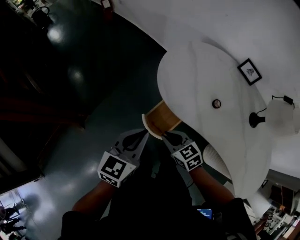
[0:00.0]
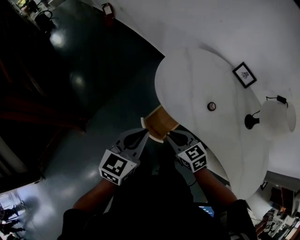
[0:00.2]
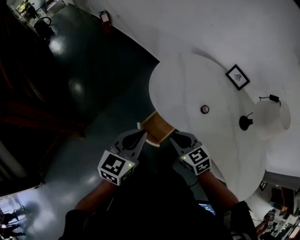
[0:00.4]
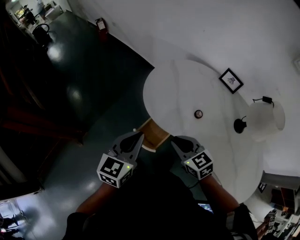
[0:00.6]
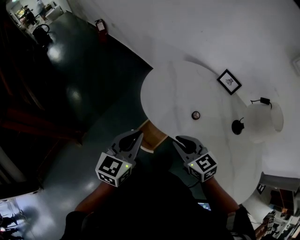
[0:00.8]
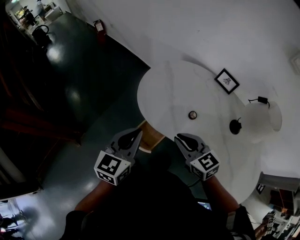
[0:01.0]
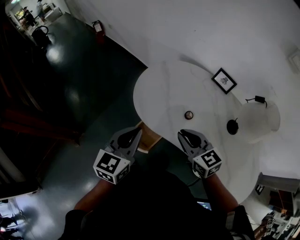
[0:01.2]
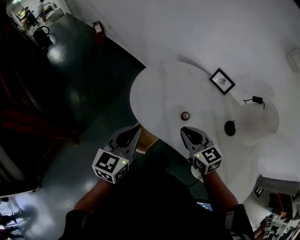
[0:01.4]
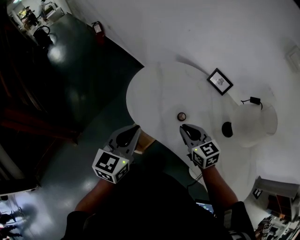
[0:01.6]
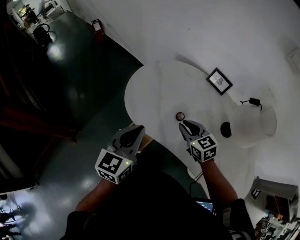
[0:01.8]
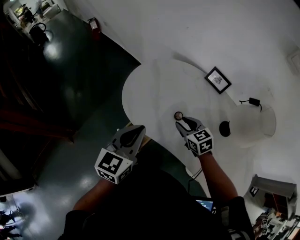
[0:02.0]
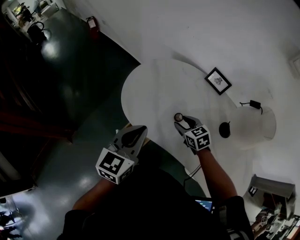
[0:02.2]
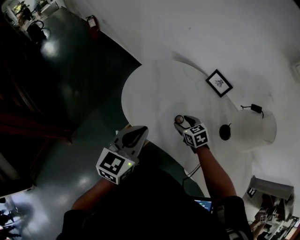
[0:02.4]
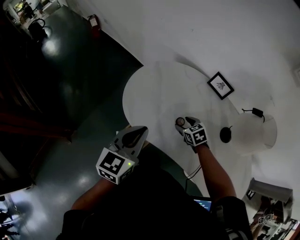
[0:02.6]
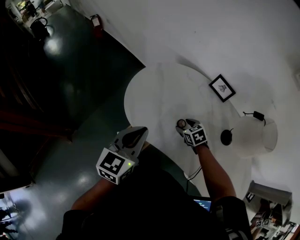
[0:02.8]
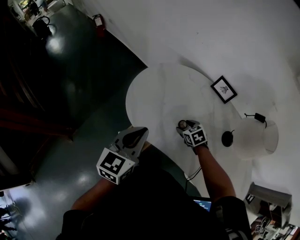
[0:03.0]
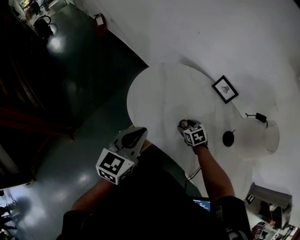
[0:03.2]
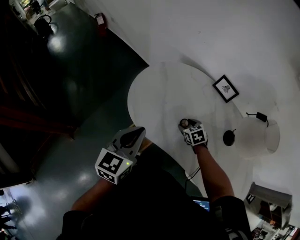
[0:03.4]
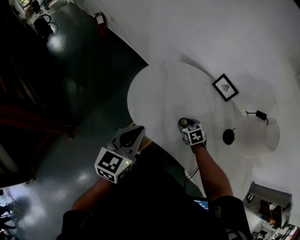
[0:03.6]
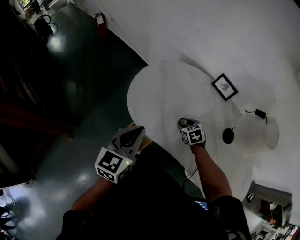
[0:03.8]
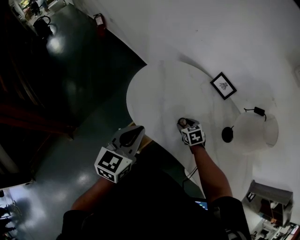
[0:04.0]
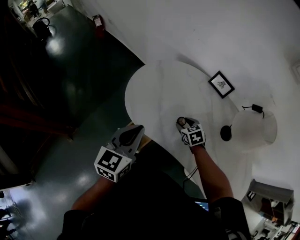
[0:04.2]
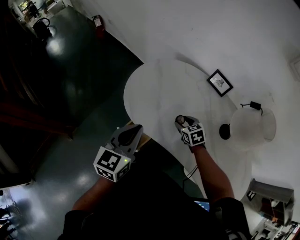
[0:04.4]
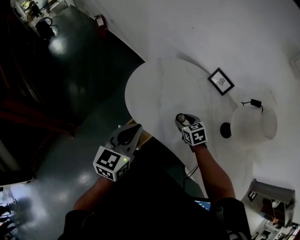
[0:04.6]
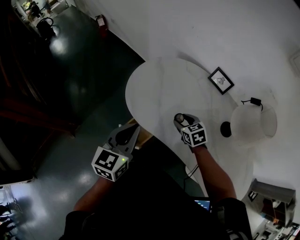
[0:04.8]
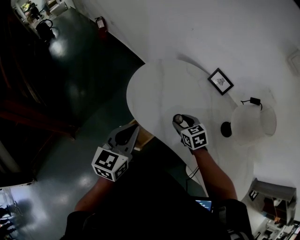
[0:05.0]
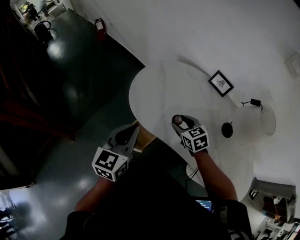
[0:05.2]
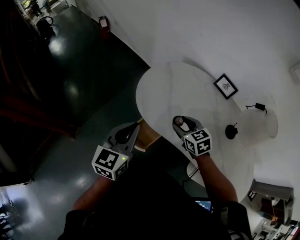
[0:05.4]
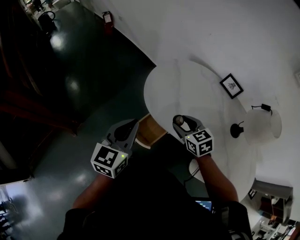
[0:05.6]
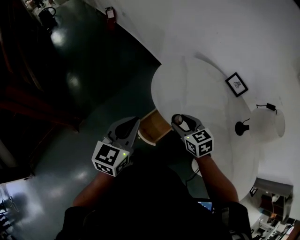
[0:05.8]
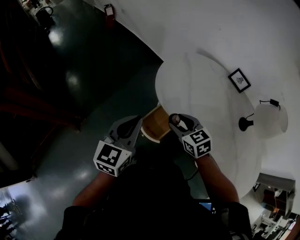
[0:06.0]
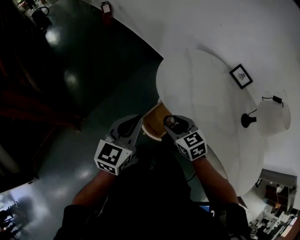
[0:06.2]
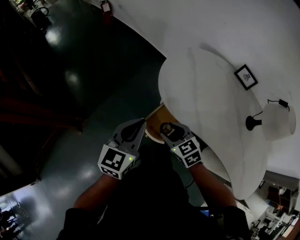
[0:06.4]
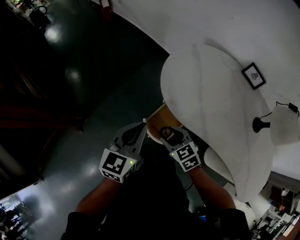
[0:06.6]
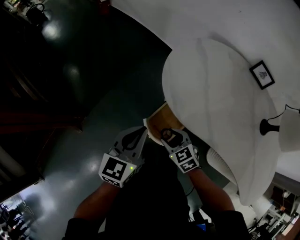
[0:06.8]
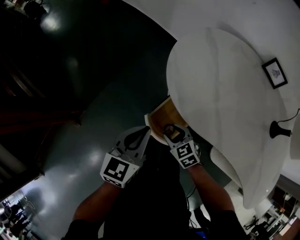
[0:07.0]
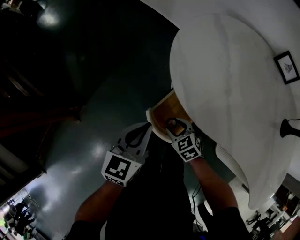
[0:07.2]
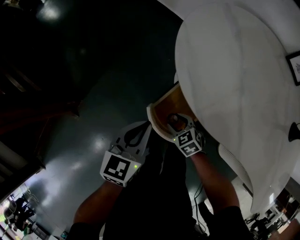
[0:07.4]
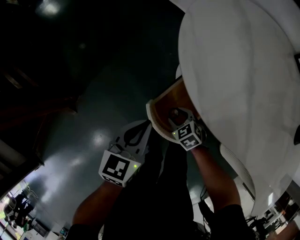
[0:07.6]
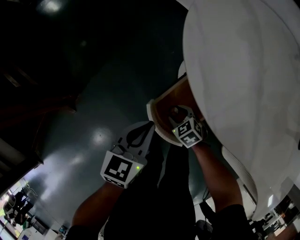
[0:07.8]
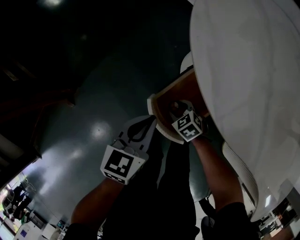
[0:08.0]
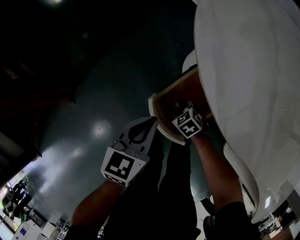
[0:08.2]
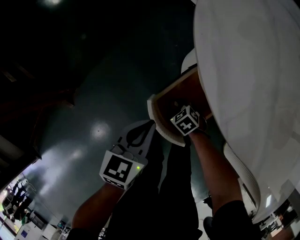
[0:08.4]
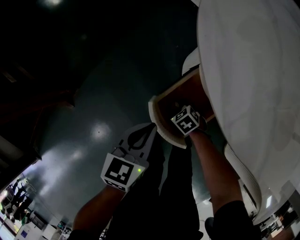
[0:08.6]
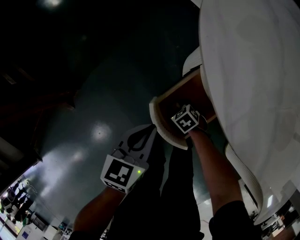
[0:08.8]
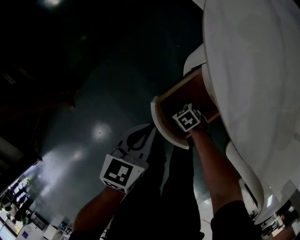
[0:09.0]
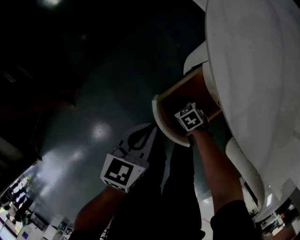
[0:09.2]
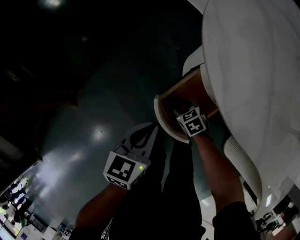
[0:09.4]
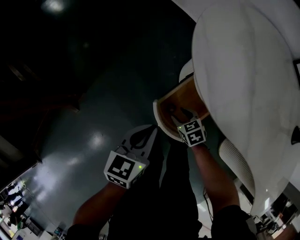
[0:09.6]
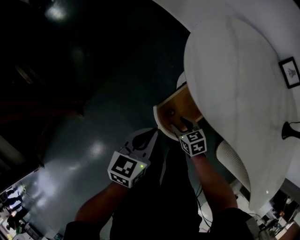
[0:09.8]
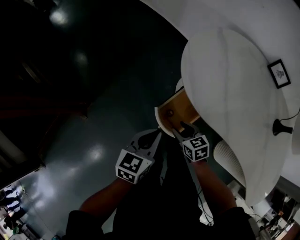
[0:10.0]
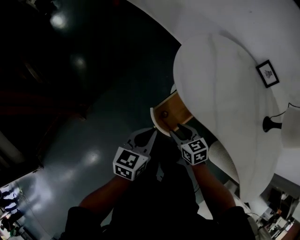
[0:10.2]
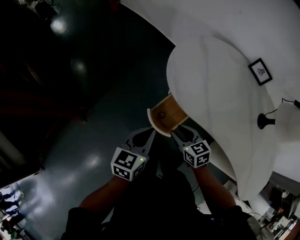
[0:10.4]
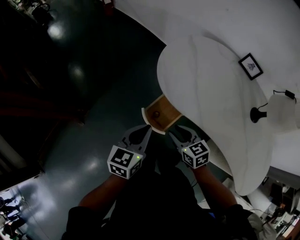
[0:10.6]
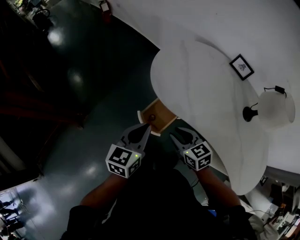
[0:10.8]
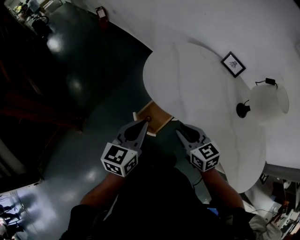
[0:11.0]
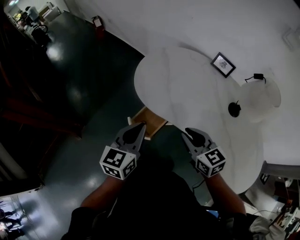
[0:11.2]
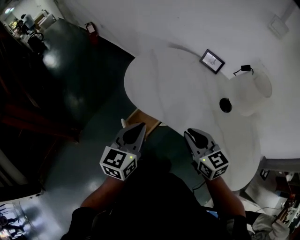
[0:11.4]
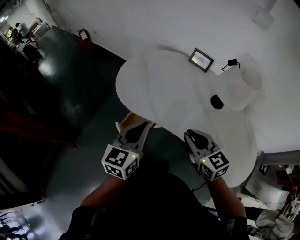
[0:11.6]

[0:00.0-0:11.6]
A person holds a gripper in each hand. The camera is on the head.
0:00.0 to 0:01.4: The right gripper goes some 25 cm to the right and upward, and swivels approximately 20 degrees, while the left gripper heads to the right and upward, covering roughly 15 cm.
0:01.4 to 0:02.8: The right gripper travels downward and forward by roughly 20 cm, points its fingers approximately 30 degrees further downward, and opens its fingers. The left gripper changes place by roughly 5 cm.
0:02.8 to 0:04.4: There are only small adjustments of the grippers.
0:04.4 to 0:05.8: The left gripper travels to the left by roughly 15 cm, while the right gripper goes about 25 cm to the left and upward.
0:05.8 to 0:07.2: The grippers both shift downward by about 30 cm.
0:07.2 to 0:08.8: The left gripper heads downward, covering some 15 cm, while the right gripper travels downward by approximately 25 cm, and rotates about 20 degrees.
0:08.8 to 0:10.2: The right gripper heads upward, covering some 35 cm, and rotates some 40 degrees; the left gripper travels upward by some 15 cm.
0:10.2 to 0:11.6: The right gripper is displaced to the right, upward and backward by roughly 40 cm, changes its angle by roughly 30 degrees, and closes. Meanwhile the left gripper goes some 30 cm to the right and upward, and changes its angle by roughly 20 degrees.

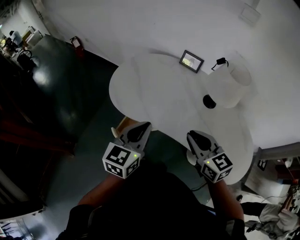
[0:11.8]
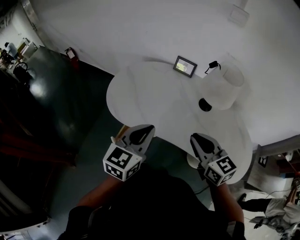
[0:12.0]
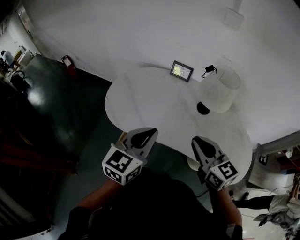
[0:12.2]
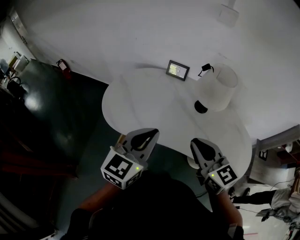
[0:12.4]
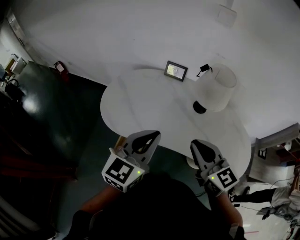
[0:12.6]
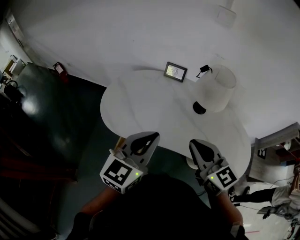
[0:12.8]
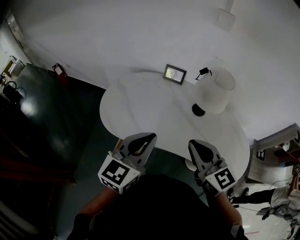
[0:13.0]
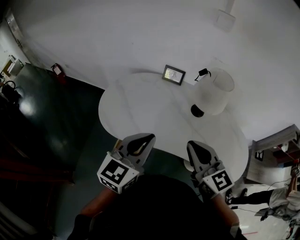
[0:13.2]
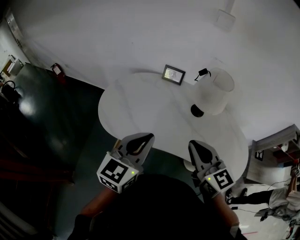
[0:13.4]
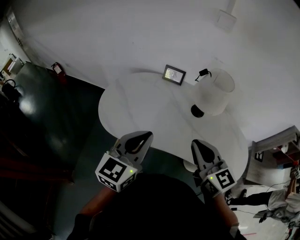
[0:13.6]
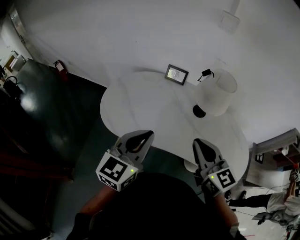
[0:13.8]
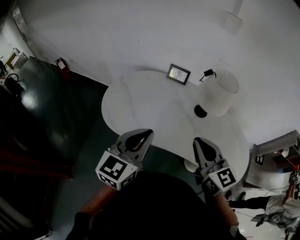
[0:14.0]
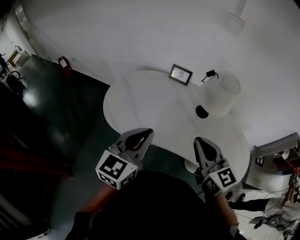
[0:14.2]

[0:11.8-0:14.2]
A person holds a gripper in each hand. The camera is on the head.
0:11.8 to 0:13.0: Both grippers travel together upward, approximately 10 cm.
0:13.0 to 0:14.2: There are only small adjustments of the grippers.

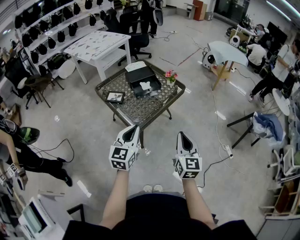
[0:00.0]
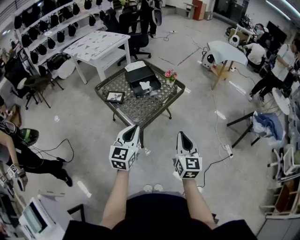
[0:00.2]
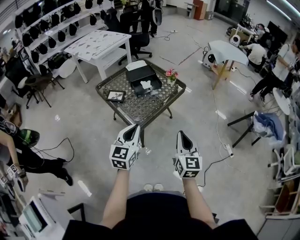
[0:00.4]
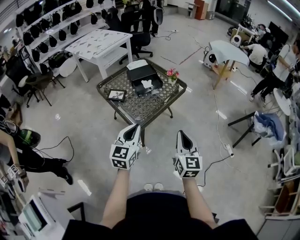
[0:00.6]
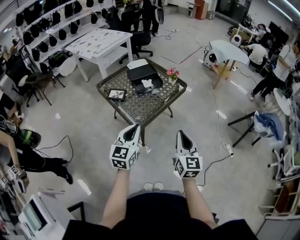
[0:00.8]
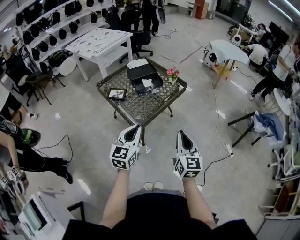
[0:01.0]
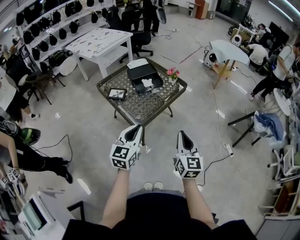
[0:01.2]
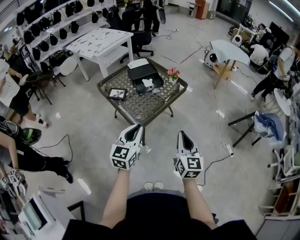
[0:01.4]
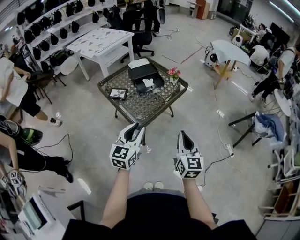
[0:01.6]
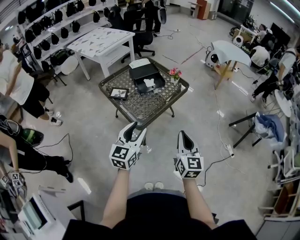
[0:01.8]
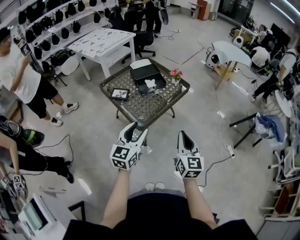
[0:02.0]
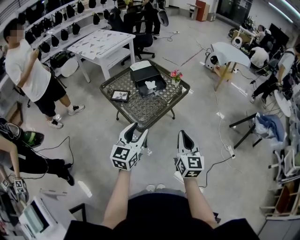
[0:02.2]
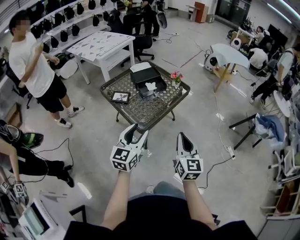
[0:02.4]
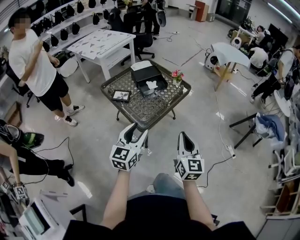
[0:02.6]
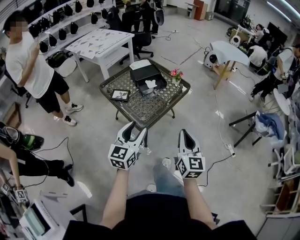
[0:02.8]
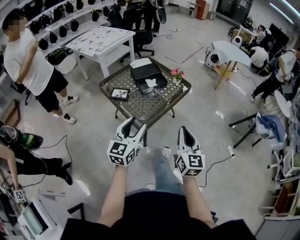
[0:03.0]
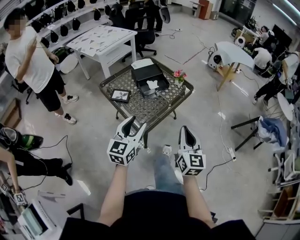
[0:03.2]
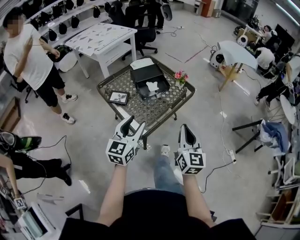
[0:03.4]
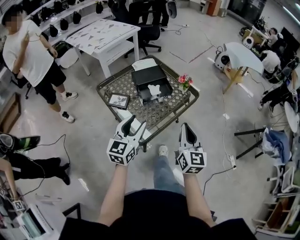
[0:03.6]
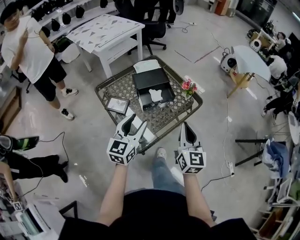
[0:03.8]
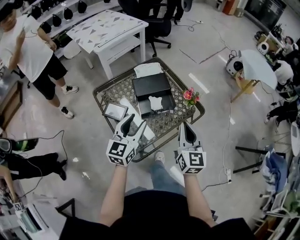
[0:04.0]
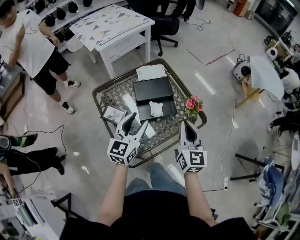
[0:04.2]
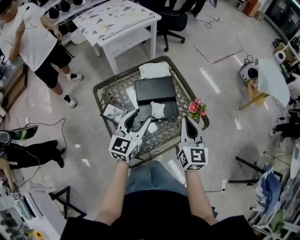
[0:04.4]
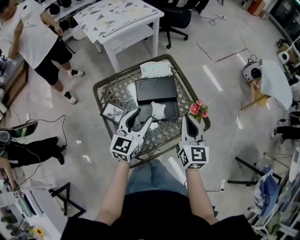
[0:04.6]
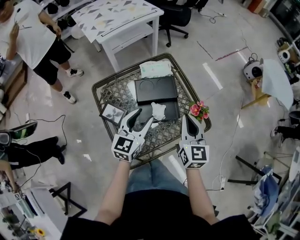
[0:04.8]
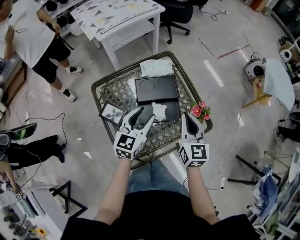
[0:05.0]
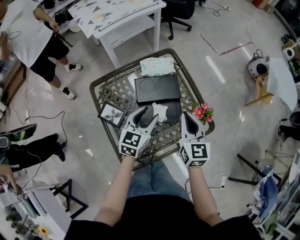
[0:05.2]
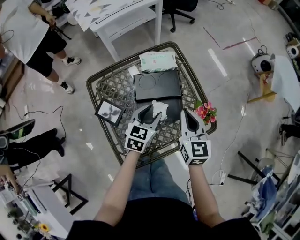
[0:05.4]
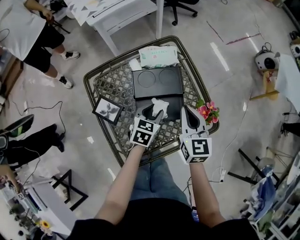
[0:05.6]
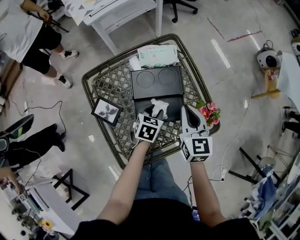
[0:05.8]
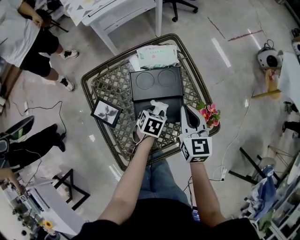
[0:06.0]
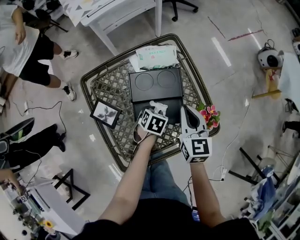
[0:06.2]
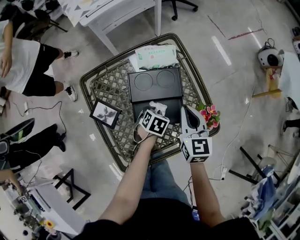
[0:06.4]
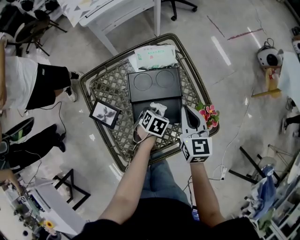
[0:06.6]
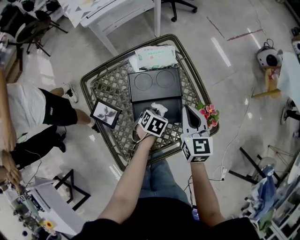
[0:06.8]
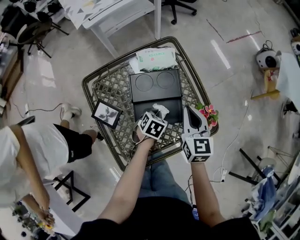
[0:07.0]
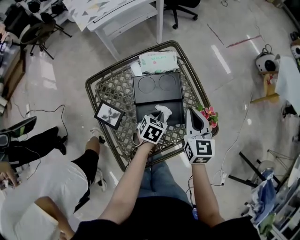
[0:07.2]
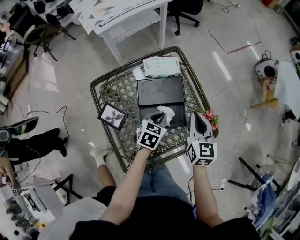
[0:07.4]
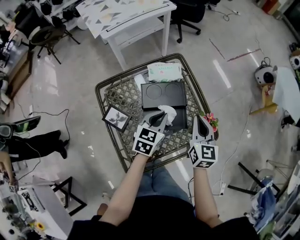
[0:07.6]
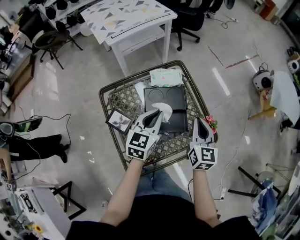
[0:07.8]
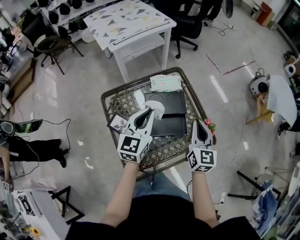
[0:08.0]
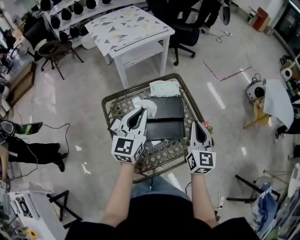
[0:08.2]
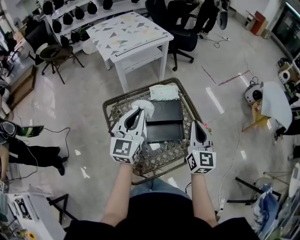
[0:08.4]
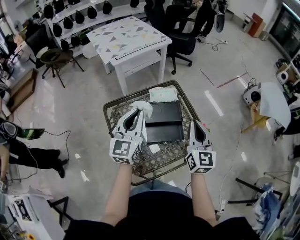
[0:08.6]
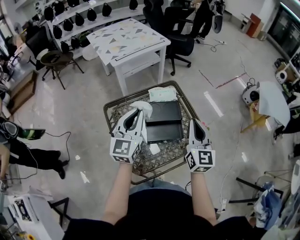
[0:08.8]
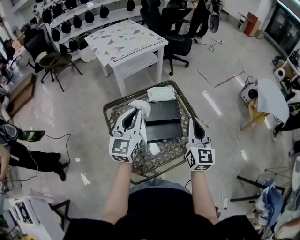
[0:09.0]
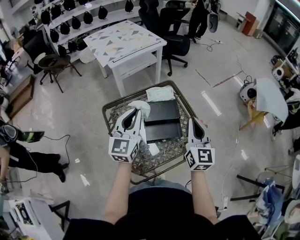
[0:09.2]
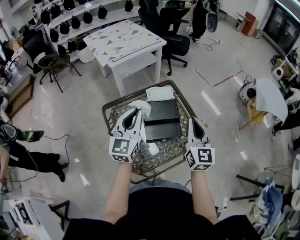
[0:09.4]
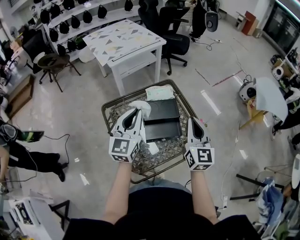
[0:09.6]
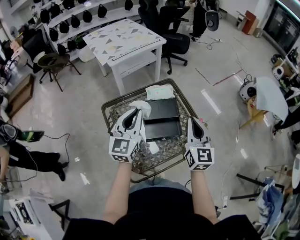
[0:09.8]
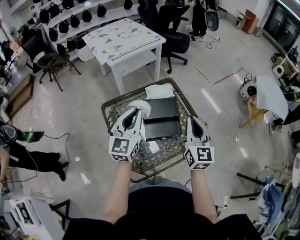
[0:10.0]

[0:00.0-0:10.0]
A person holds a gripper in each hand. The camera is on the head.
0:00.0 to 0:01.4: There are only small adjustments of the grippers.
0:01.4 to 0:02.8: The left gripper opens.
0:02.8 to 0:04.2: The two grippers travel together, forward, about 40 cm.
0:04.2 to 0:05.8: The right gripper goes some 20 cm forward and downward. The left gripper goes approximately 30 cm downward and forward, and points its fingers approximately 40 degrees further downward.
0:05.8 to 0:07.2: The left gripper closes its fingers.
0:07.2 to 0:08.6: The right gripper heads upward and backward, covering about 20 cm, and turns by about 20 degrees; the left gripper is displaced upward and to the left by about 35 cm, and points its fingers some 60 degrees further upward.
0:08.6 to 0:10.0: The grippers make only small movements.
